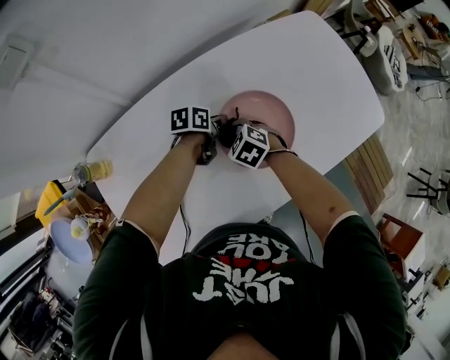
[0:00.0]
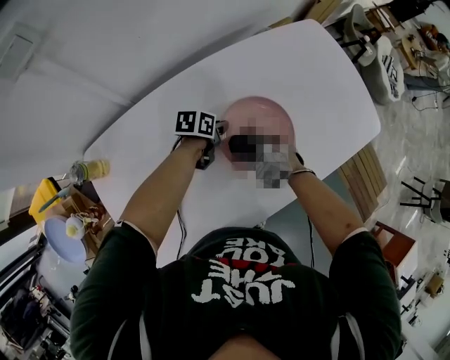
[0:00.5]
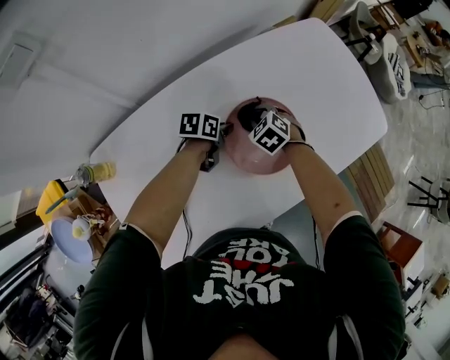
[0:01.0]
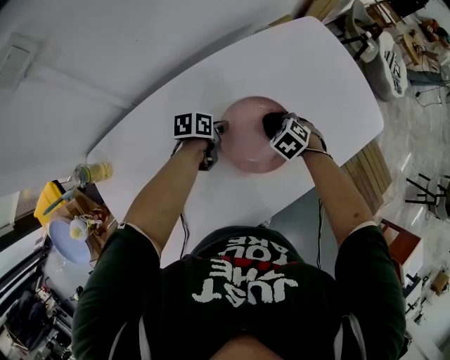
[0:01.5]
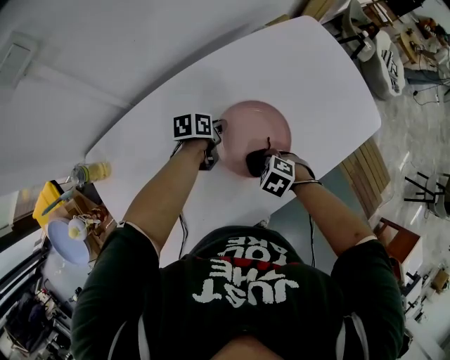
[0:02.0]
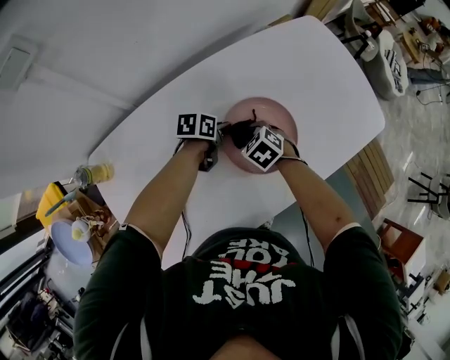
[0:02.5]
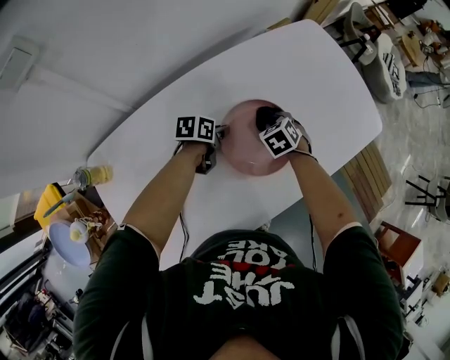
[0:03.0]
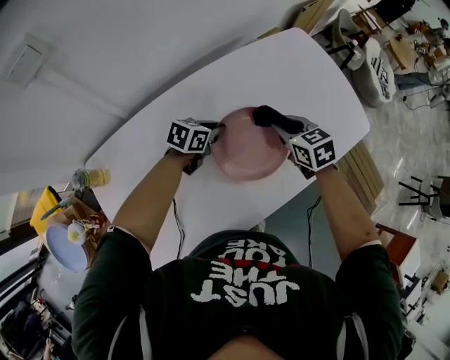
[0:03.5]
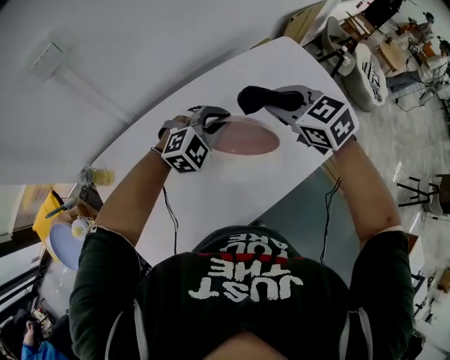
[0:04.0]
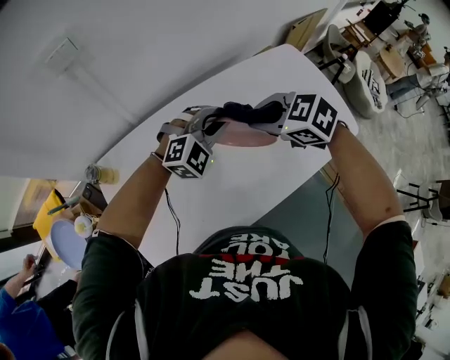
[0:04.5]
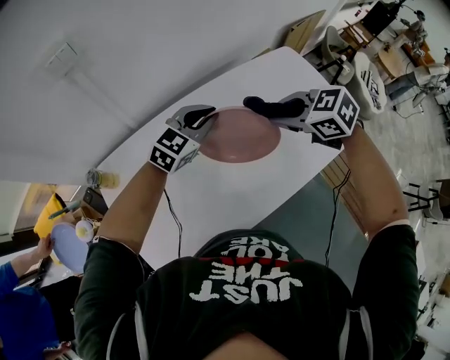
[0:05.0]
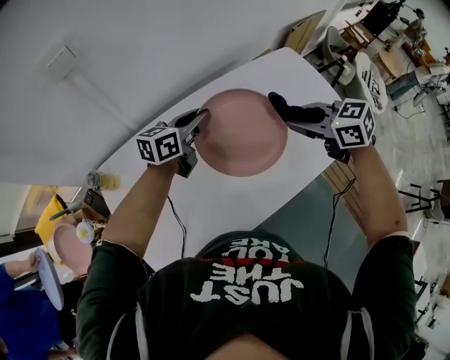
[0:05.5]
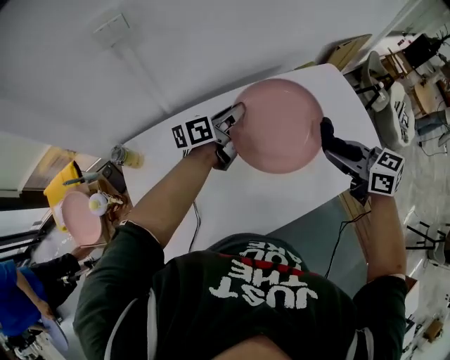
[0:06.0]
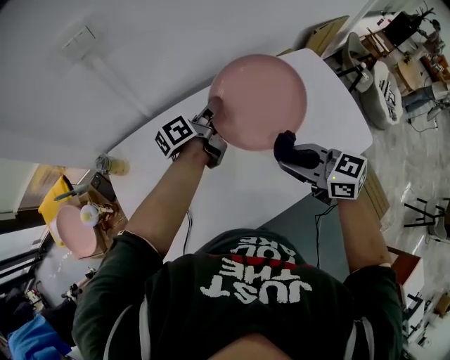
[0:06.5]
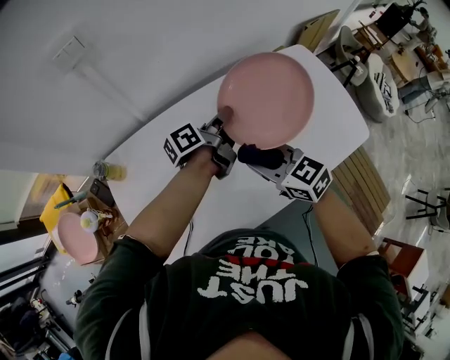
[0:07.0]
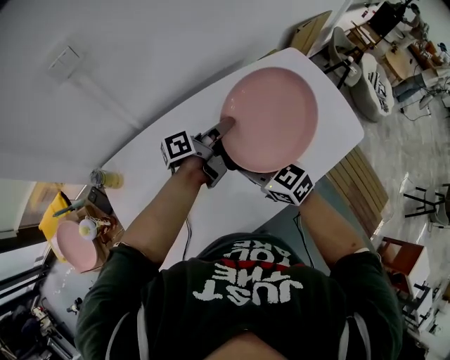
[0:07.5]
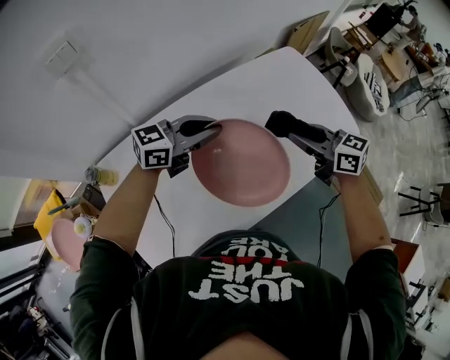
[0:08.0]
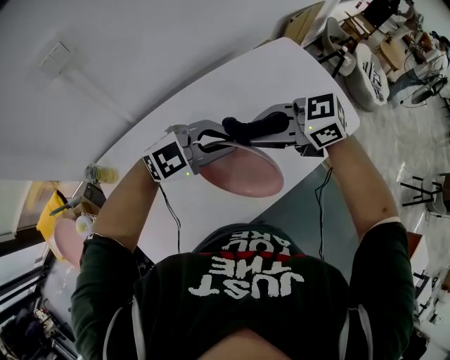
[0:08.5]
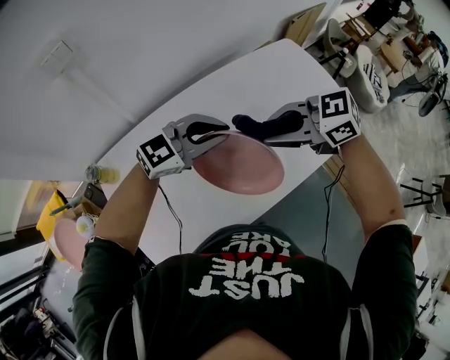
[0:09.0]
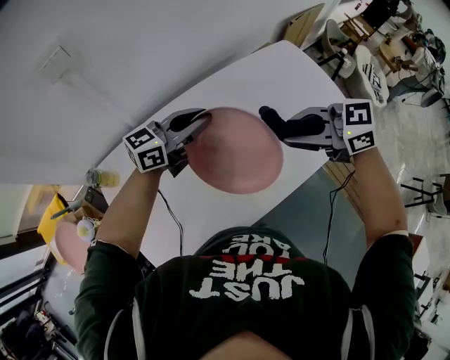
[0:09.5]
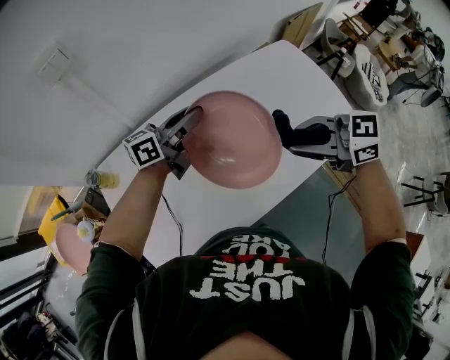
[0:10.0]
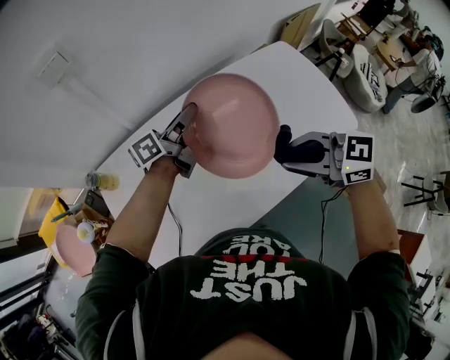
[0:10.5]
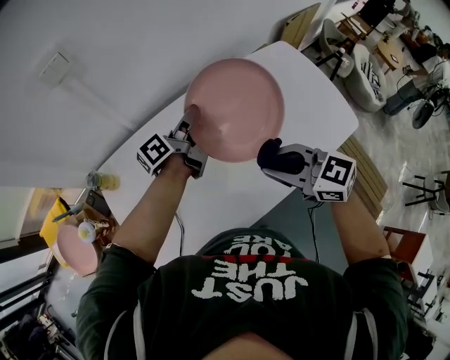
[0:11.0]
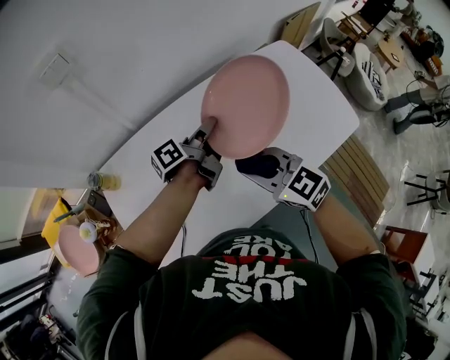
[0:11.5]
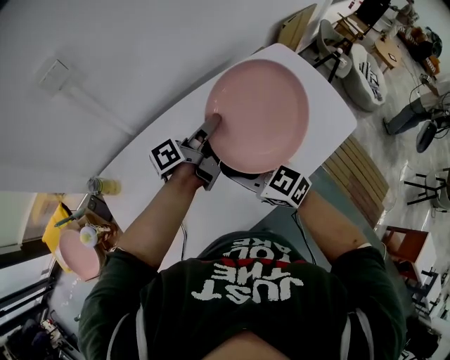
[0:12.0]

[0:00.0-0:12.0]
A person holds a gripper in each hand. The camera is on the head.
0:00.0 to 0:02.0: The right gripper ends up about 15 cm from where it was.
0:02.0 to 0:04.0: The two grippers go roughly 25 cm upward. The left gripper twists approximately 100 degrees clockwise, seen from behind. Meanwhile the right gripper angles its fingers upward, by about 40 degrees.
0:04.0 to 0:06.0: The right gripper goes about 5 cm backward, and swivels roughly 30 degrees; the left gripper shifts about 10 cm to the left and forward, and rotates around the line of its fingers by roughly 90 degrees, counterclockwise from behind.
0:06.0 to 0:08.0: The right gripper reaches about 10 cm downward, then returns; the left gripper moves about 10 cm, and rotates some 50 degrees.
0:08.0 to 0:10.0: The right gripper shifts by approximately 10 cm, and turns by roughly 30 degrees. Meanwhile the left gripper changes place by some 5 cm, and rotates approximately 30 degrees.
0:10.0 to 0:12.0: The right gripper shifts by roughly 15 cm, and rotates approximately 20 degrees. Meanwhile the left gripper changes place by some 5 cm, and rotates some 40 degrees.

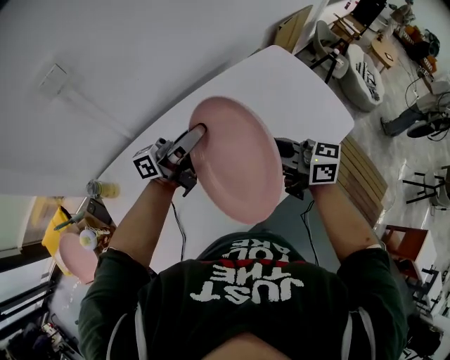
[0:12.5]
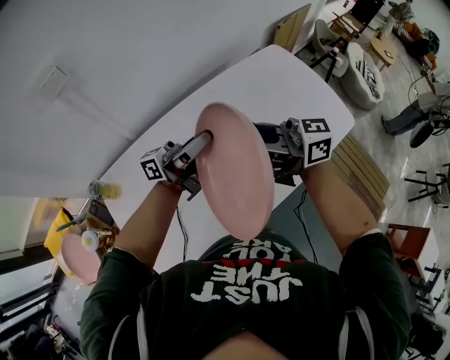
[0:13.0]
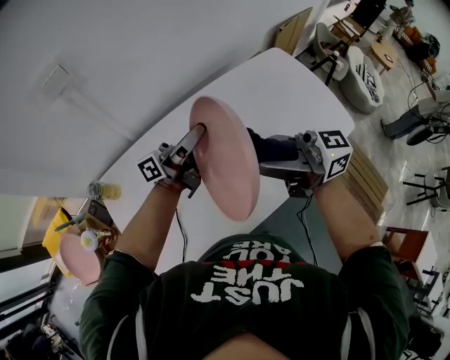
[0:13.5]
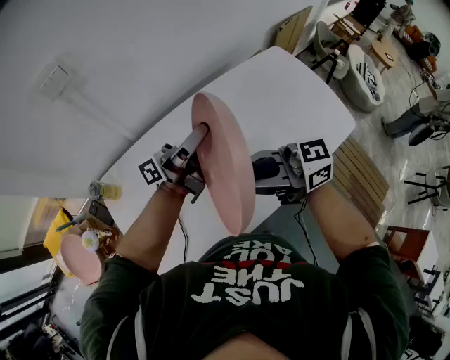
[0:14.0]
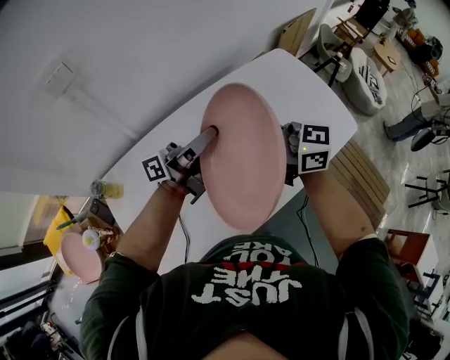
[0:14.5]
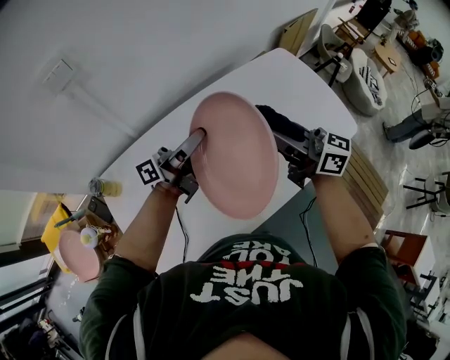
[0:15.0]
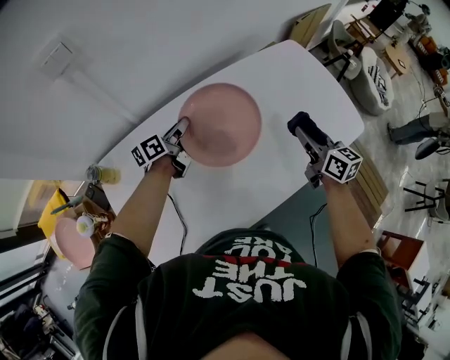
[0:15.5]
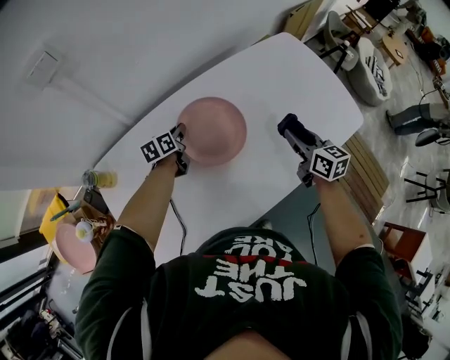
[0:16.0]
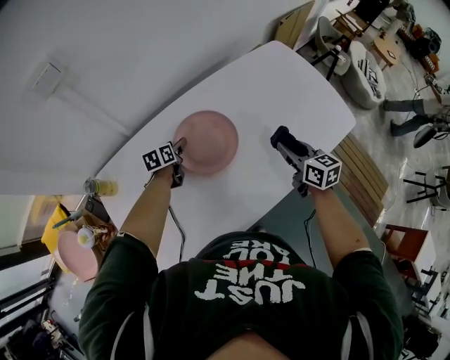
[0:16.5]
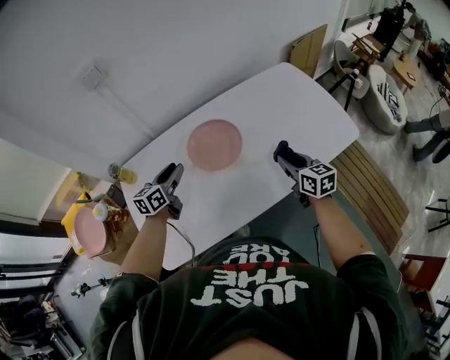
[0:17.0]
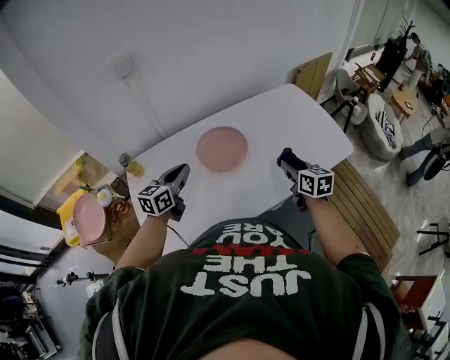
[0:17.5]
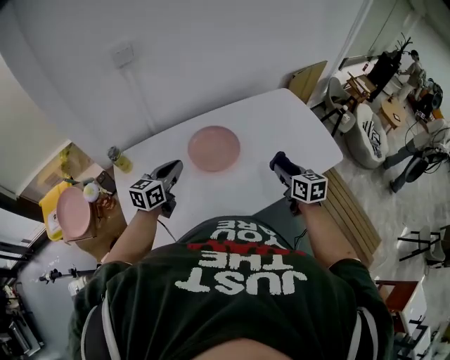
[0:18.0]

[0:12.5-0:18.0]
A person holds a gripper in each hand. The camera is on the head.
0:12.5 to 0:14.5: The right gripper shifts by about 10 cm.
0:14.5 to 0:16.0: The right gripper travels downward by roughly 20 cm, and rotates roughly 50 degrees. The left gripper travels downward by about 30 cm, and tilts its fingers roughly 70 degrees downward.
0:16.0 to 0:18.0: The right gripper is displaced backward and upward by about 15 cm. The left gripper travels backward and upward by roughly 30 cm, swivels roughly 30 degrees, and opens, then closes once more.

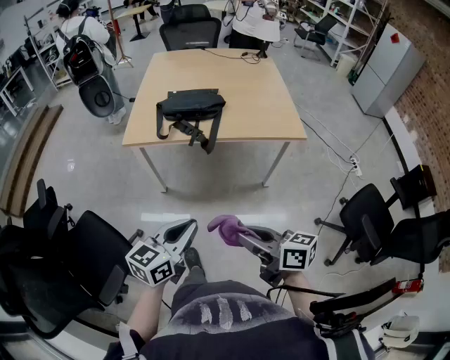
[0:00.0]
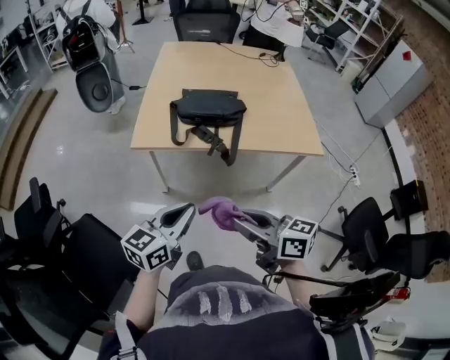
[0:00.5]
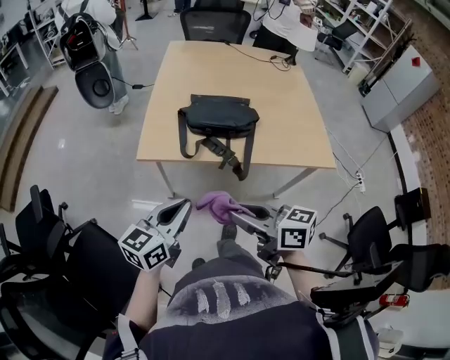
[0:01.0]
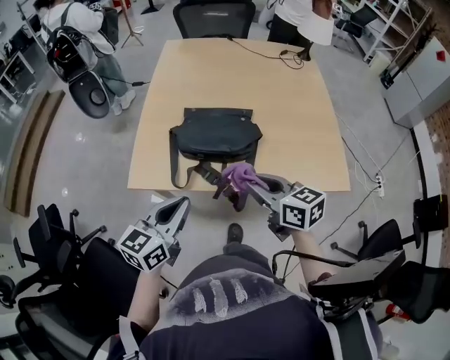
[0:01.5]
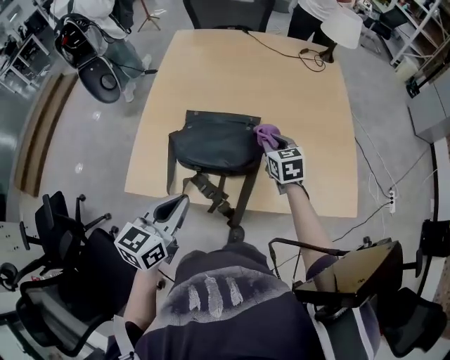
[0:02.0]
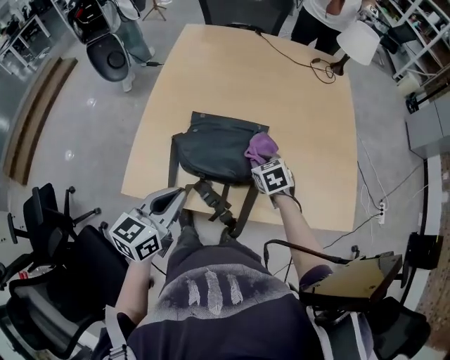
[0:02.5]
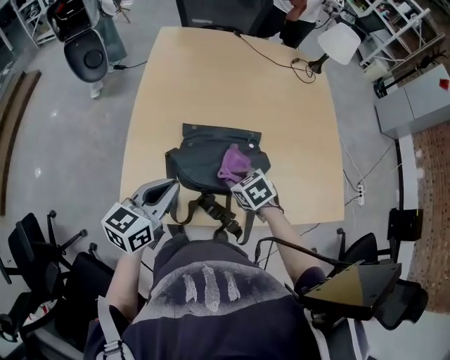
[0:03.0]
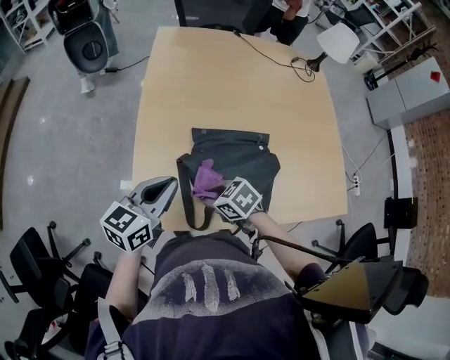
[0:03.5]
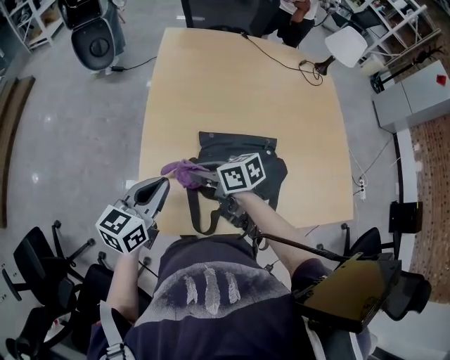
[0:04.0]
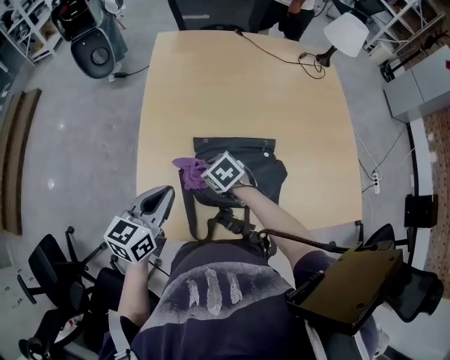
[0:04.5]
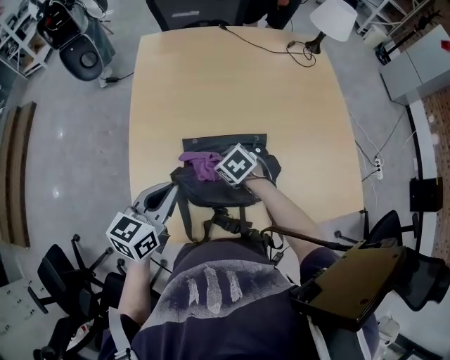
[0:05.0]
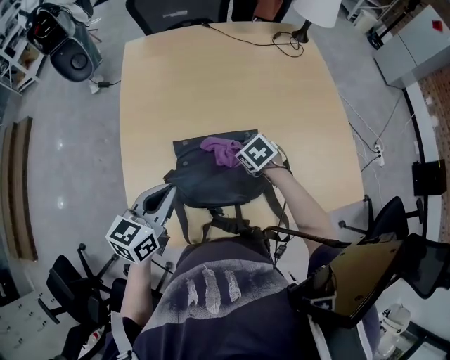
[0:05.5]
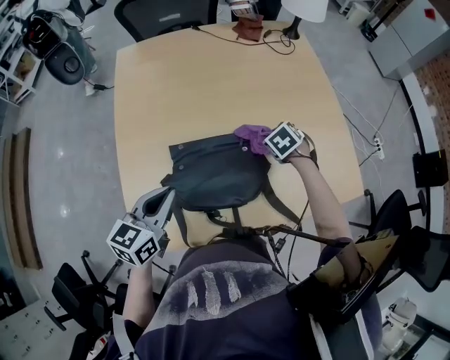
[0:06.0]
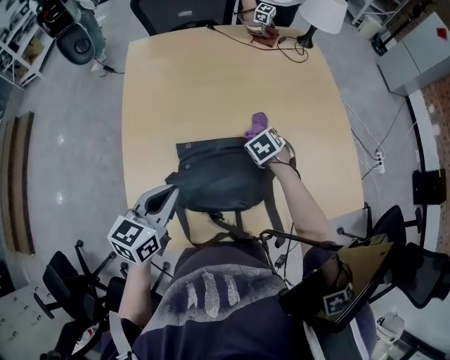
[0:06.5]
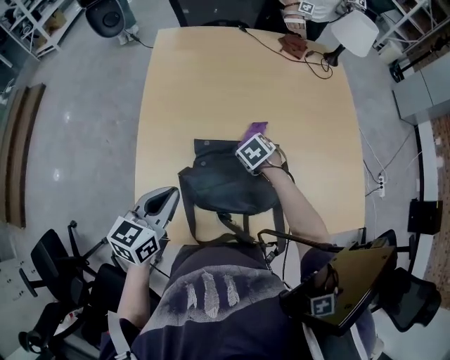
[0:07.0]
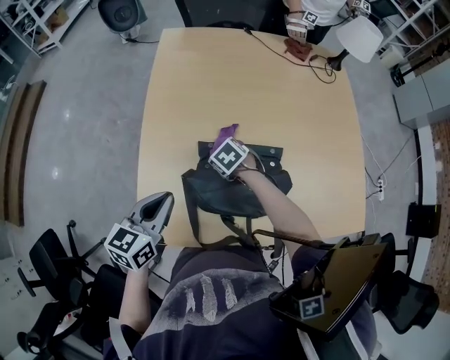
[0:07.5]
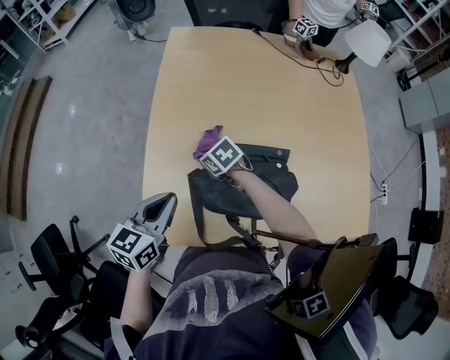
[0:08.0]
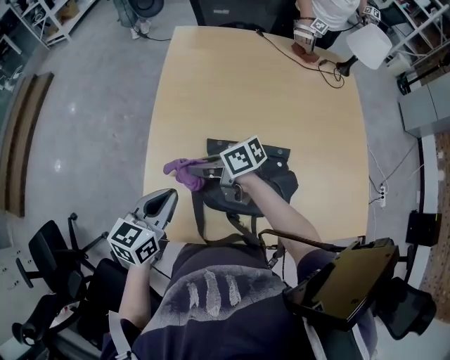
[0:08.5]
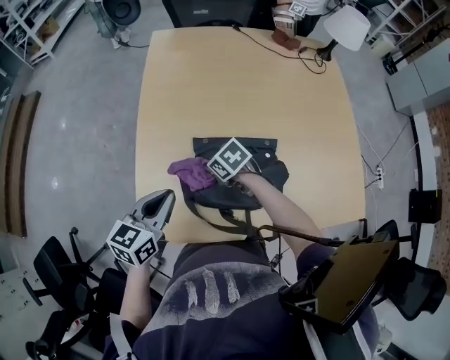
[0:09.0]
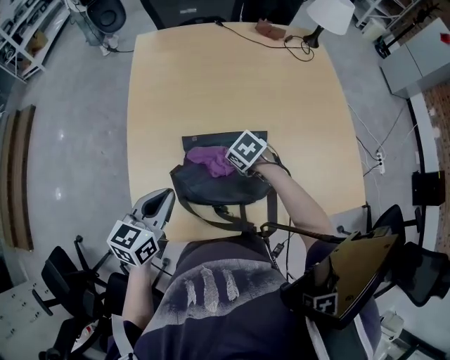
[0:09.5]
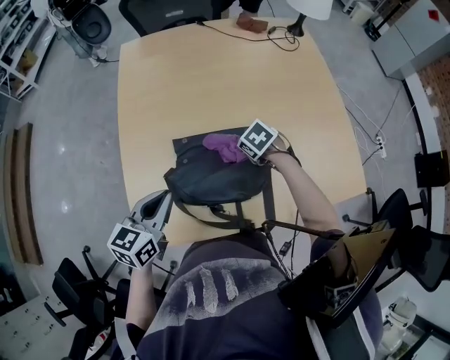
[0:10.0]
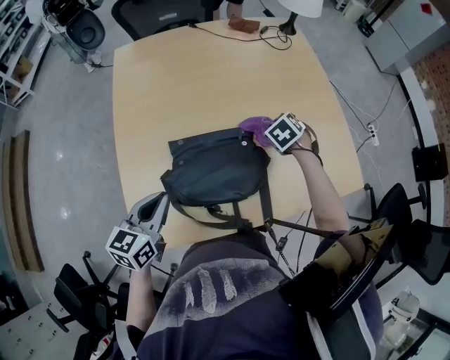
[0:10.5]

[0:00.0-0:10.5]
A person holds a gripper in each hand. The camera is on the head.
0:00.0 to 0:02.0: Both grippers are carried forward, roughly 60 cm. The right gripper swivels roughly 50 degrees.
0:02.0 to 0:04.0: The left gripper shifts about 25 cm to the left and forward; the right gripper shifts about 35 cm to the left, and rotates roughly 50 degrees.
0:04.0 to 0:06.5: The right gripper ends up roughly 35 cm from where it was, and angles its fingers downward, by some 40 degrees. The left gripper moves about 15 cm.
0:06.5 to 0:08.5: The right gripper ends up roughly 35 cm from where it was, and points its fingers roughly 50 degrees further upward. Meanwhile the left gripper shifts by approximately 10 cm.
0:08.5 to 0:10.5: The right gripper changes place by roughly 40 cm, and points its fingers roughly 50 degrees further downward. Meanwhile the left gripper shifts by roughly 10 cm.
